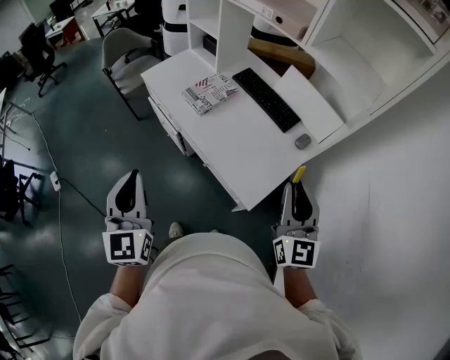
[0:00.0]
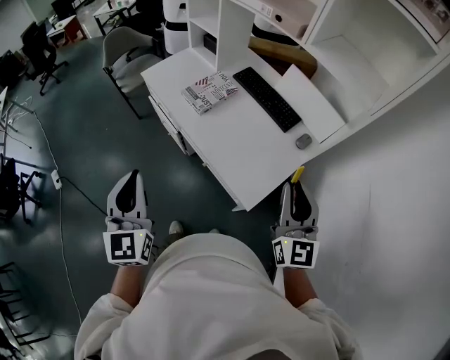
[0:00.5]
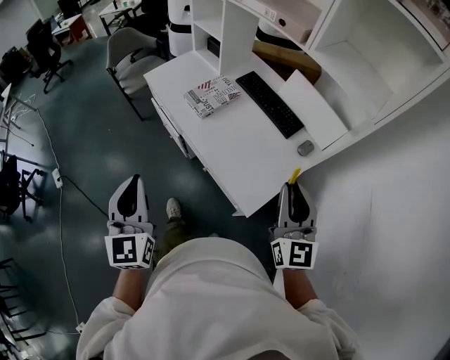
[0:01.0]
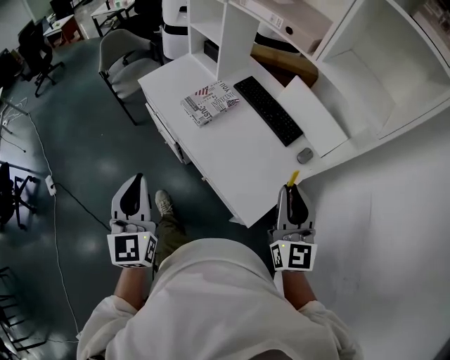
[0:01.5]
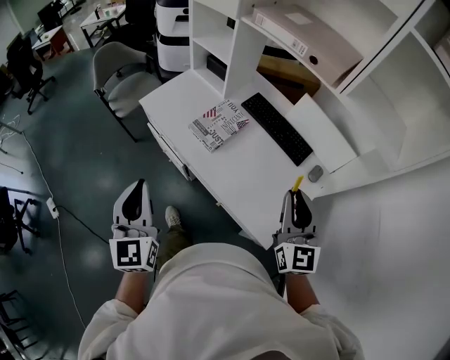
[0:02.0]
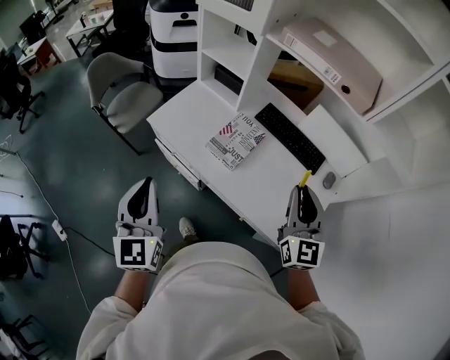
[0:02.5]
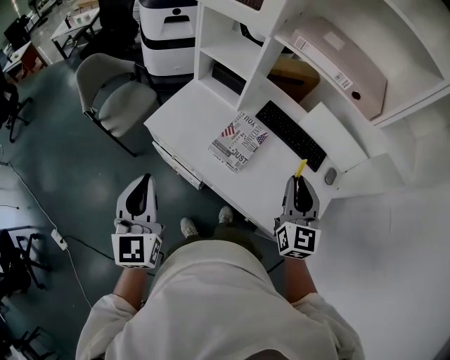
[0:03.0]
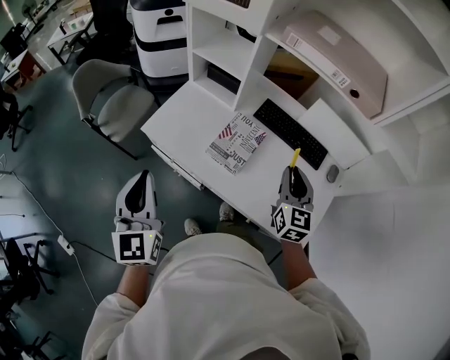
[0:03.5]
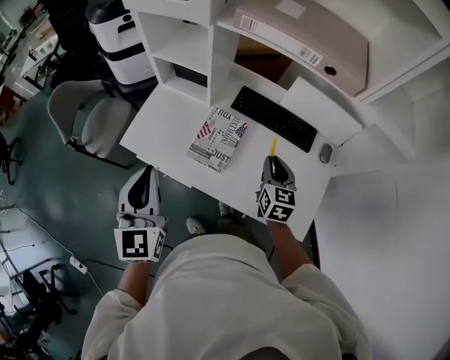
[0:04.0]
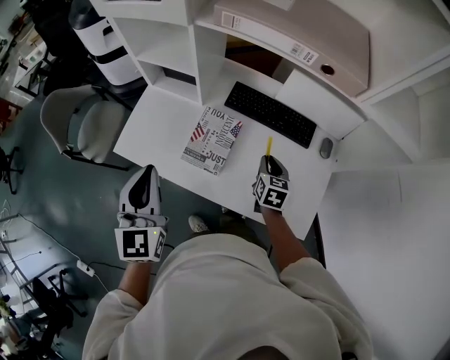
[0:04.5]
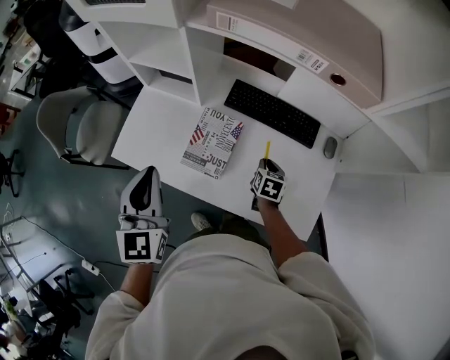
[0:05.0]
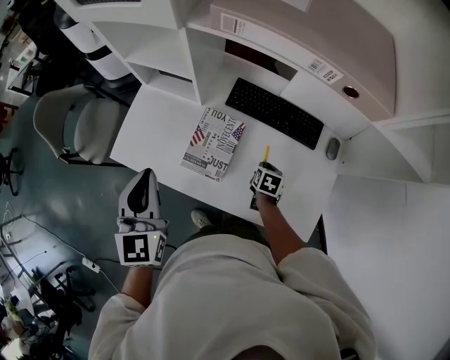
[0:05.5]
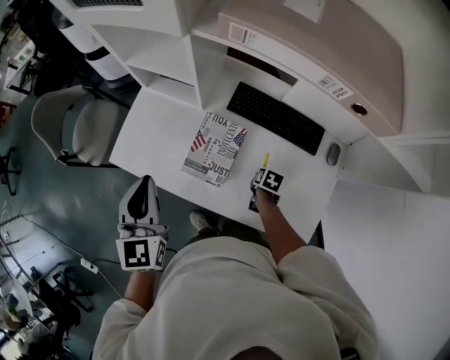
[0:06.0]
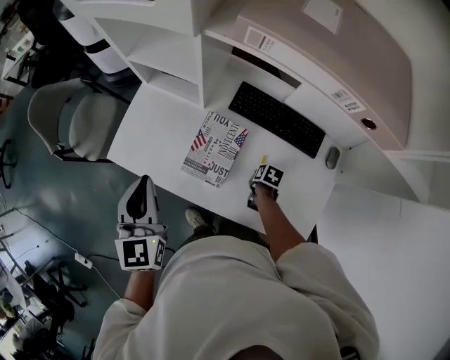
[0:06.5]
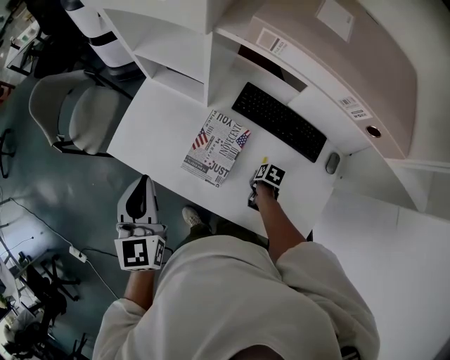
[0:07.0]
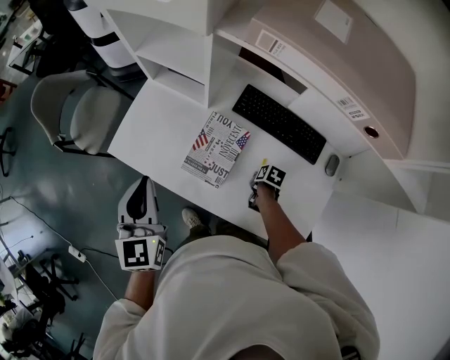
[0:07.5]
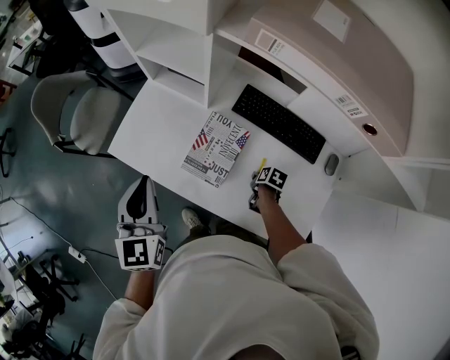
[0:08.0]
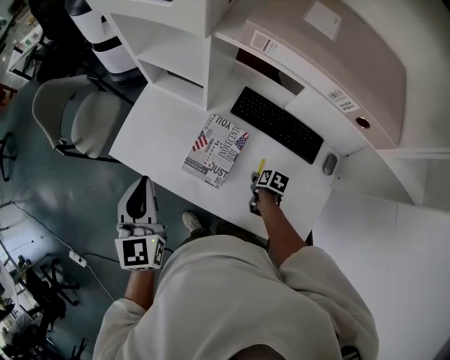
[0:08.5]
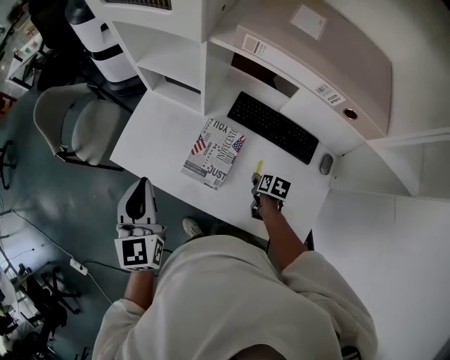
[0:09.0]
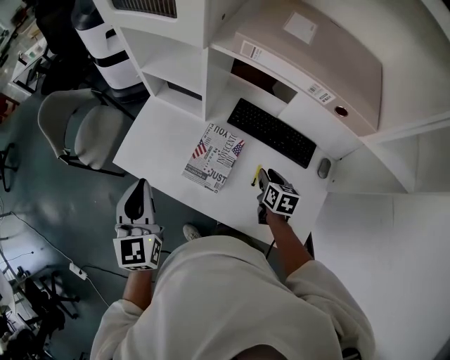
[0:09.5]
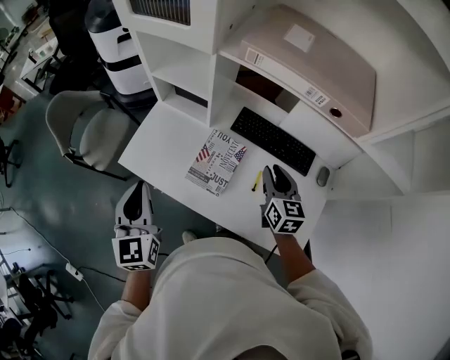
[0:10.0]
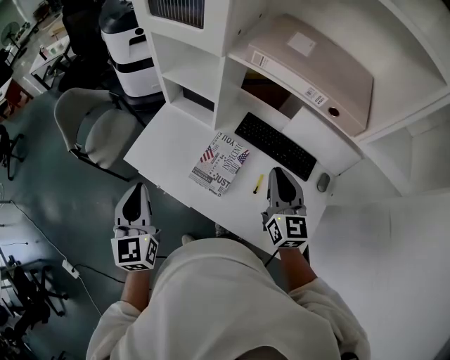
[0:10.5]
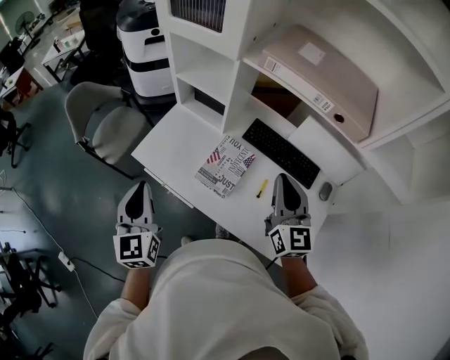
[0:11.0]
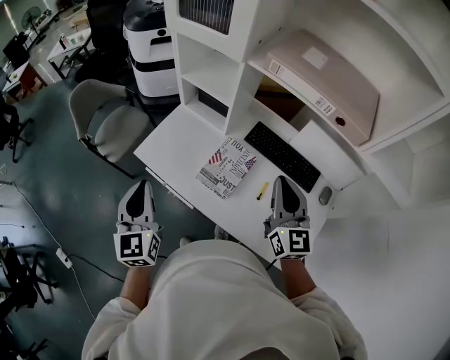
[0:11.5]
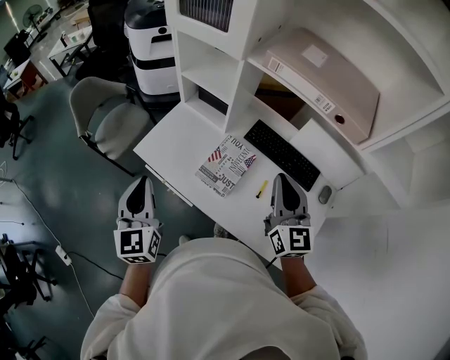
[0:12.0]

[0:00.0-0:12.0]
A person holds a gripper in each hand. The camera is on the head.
0:00.0 to 0:02.0: Both grippers move forward and to the left, approximately 20 cm.
0:02.0 to 0:04.0: The right gripper shifts roughly 30 cm forward, downward and to the left, and turns by approximately 40 degrees; the left gripper shifts roughly 25 cm forward, and swivels approximately 20 degrees.
0:04.0 to 0:06.0: The right gripper is displaced downward by some 25 cm, and points its fingers some 40 degrees further downward. The left gripper is displaced forward and downward by approximately 15 cm.
0:06.0 to 0:08.0: There are only small adjustments of the grippers.
0:08.0 to 0:10.0: The right gripper is displaced upward by some 30 cm, and tips its fingers upward by approximately 50 degrees. Meanwhile the left gripper ends up about 10 cm from where it was.
0:10.0 to 0:12.0: The left gripper moves backward, approximately 5 cm. The right gripper moves upward, backward and to the left, about 15 cm, swivels about 30 degrees, and closes its fingers.

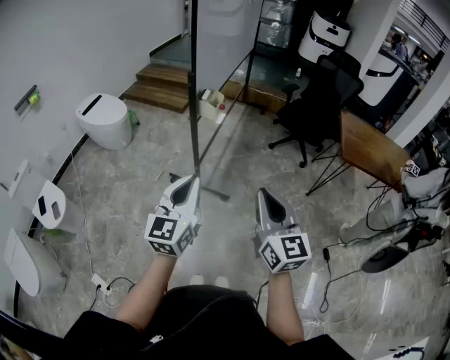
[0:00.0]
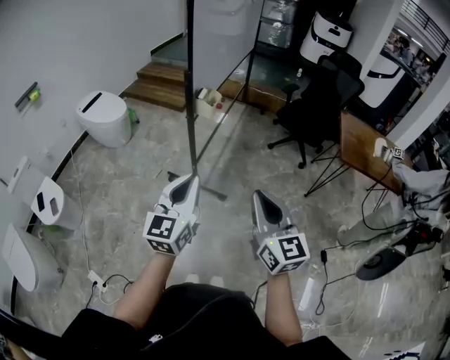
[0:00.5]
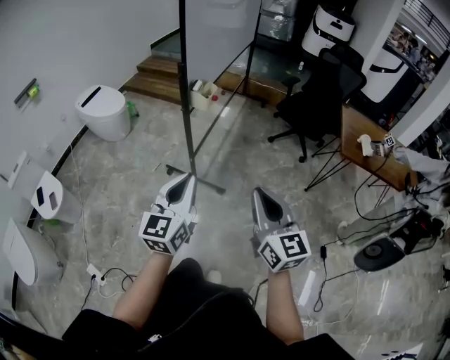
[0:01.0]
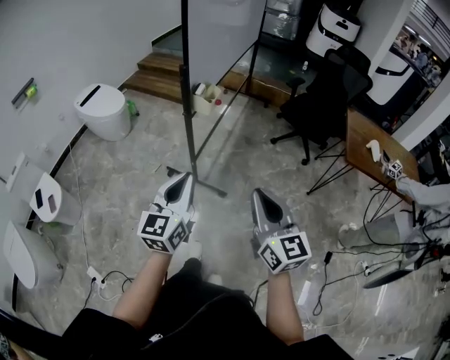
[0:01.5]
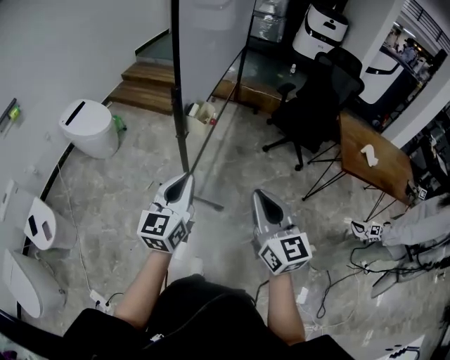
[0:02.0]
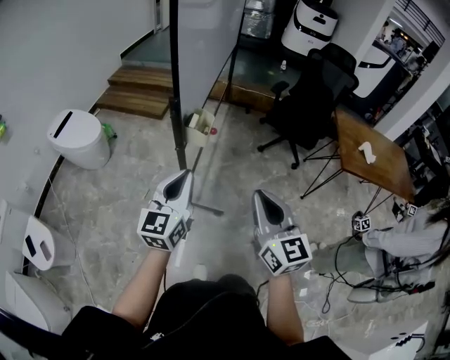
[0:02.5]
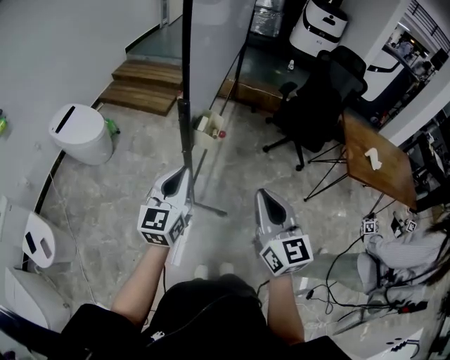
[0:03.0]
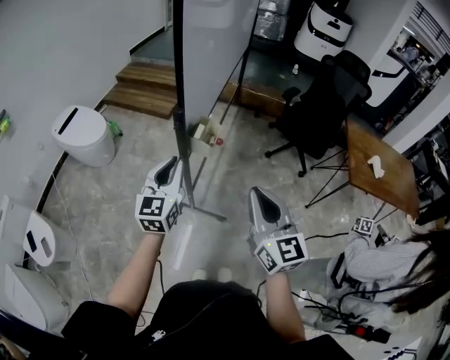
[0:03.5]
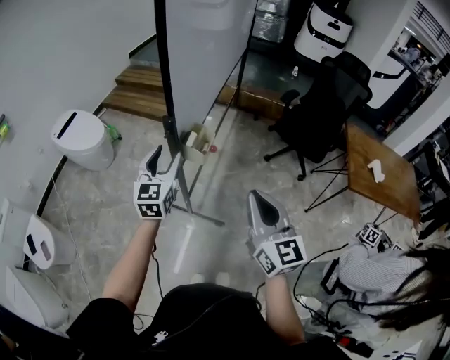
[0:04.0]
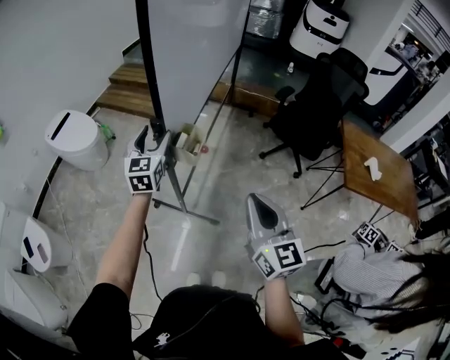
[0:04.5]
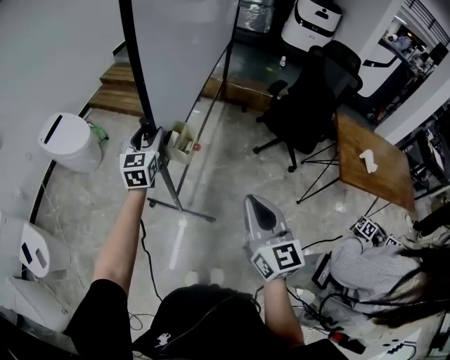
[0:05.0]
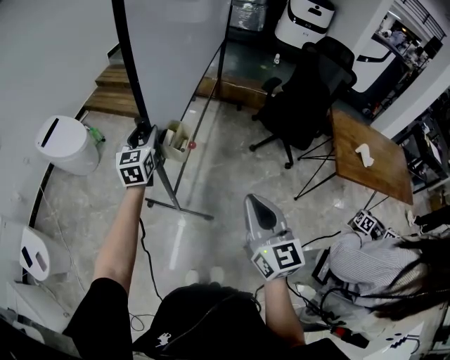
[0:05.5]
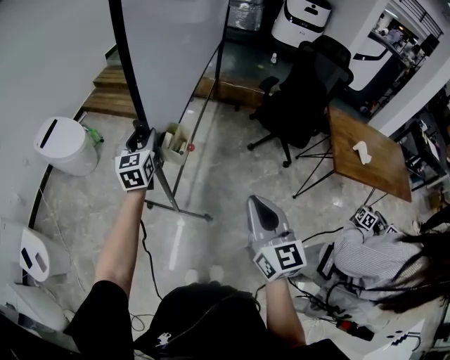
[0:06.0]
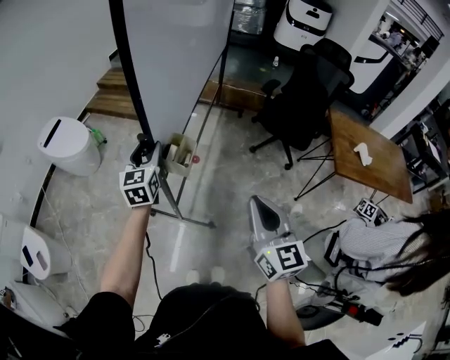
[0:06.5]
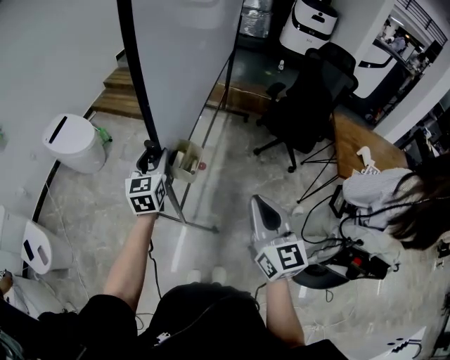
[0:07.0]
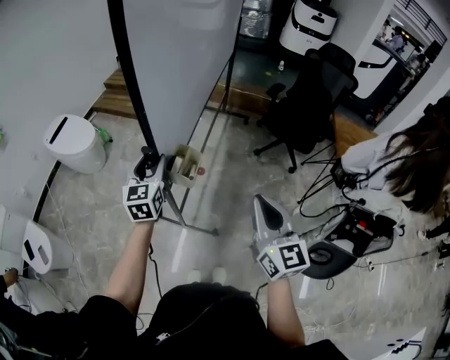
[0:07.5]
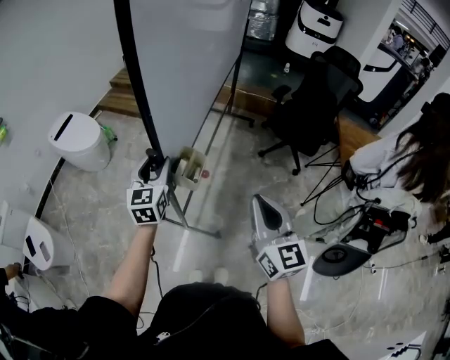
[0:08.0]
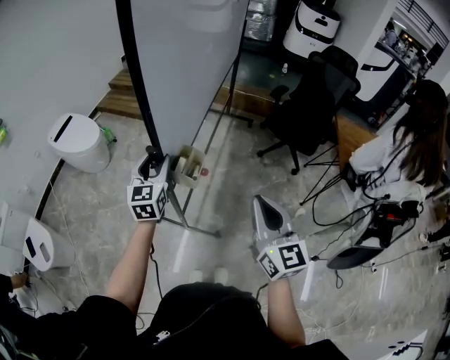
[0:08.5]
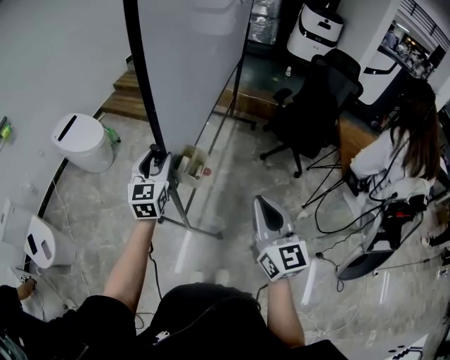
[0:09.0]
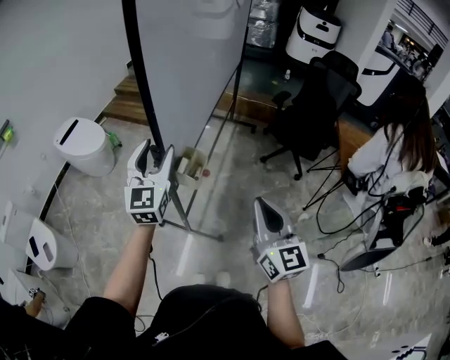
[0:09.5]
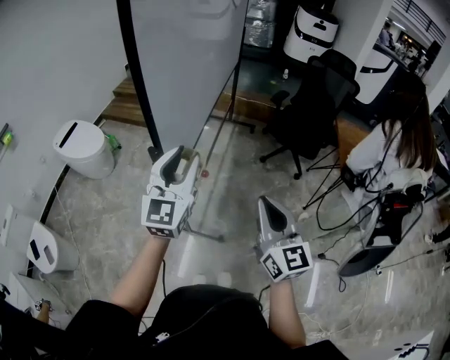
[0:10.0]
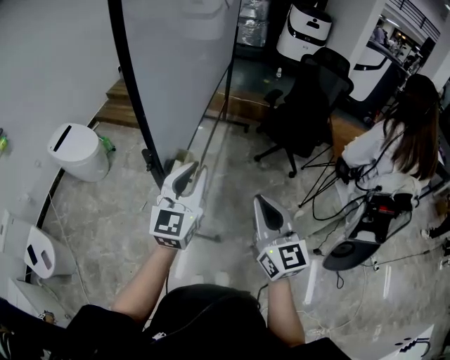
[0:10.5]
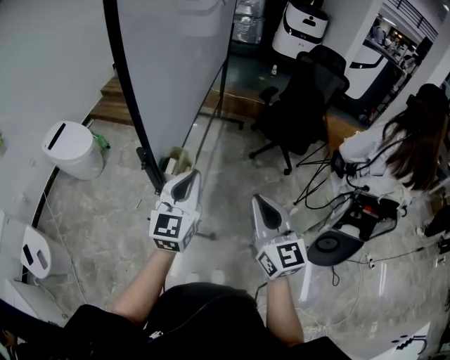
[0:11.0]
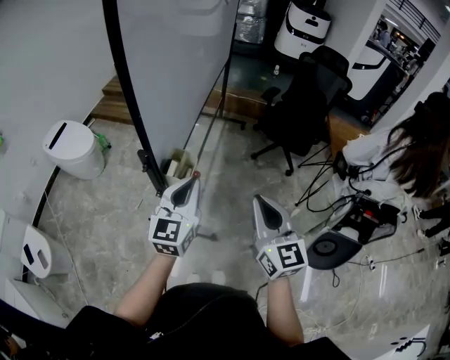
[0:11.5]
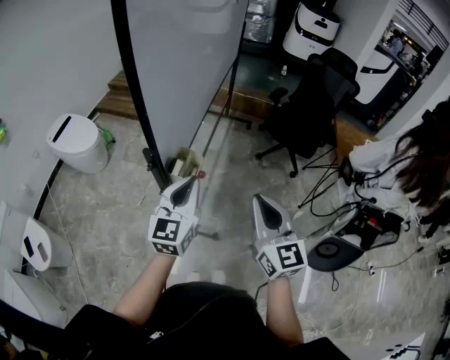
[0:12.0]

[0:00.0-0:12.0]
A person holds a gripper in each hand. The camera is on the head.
0:00.0 to 0:02.0: Both grippers move forward, roughly 15 cm.
0:02.0 to 0:04.0: The left gripper heads forward, covering roughly 25 cm, and opens its fingers, while the right gripper travels forward by roughly 15 cm.
0:04.0 to 0:06.0: The right gripper moves approximately 5 cm; the left gripper travels forward by roughly 10 cm.
0:06.0 to 0:08.0: The left gripper heads backward, covering about 15 cm.
0:08.0 to 0:10.0: The left gripper goes approximately 20 cm upward, to the right and backward, and rotates about 20 degrees.
0:10.0 to 0:12.0: The left gripper travels downward by about 10 cm, and closes up.

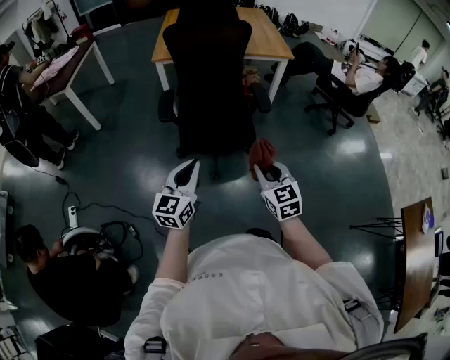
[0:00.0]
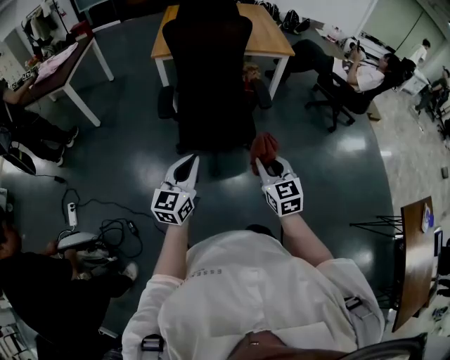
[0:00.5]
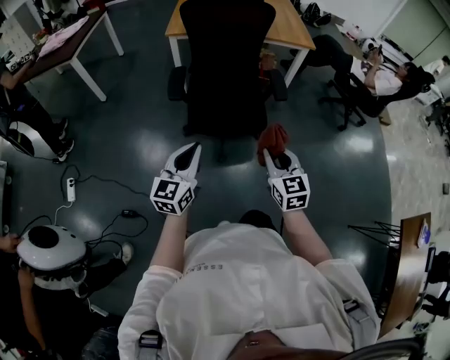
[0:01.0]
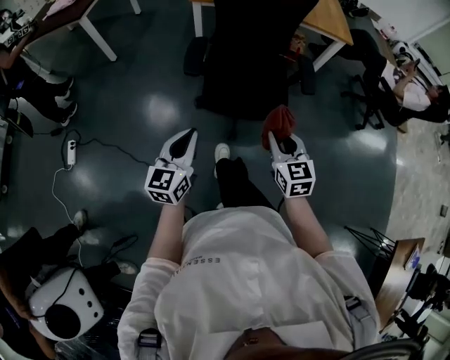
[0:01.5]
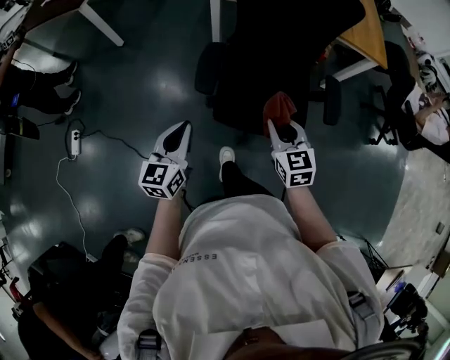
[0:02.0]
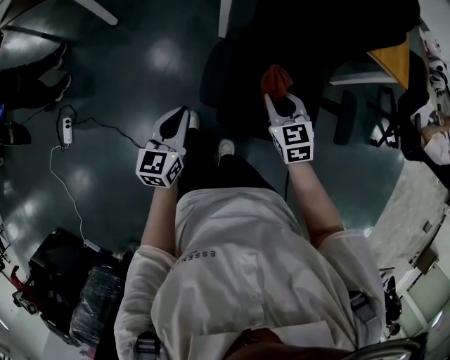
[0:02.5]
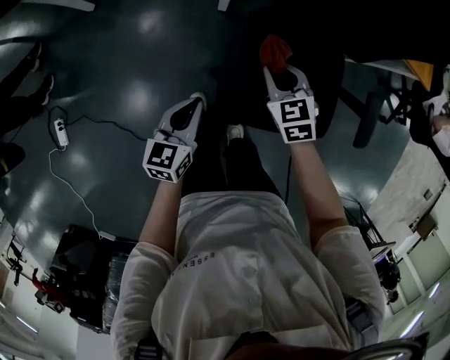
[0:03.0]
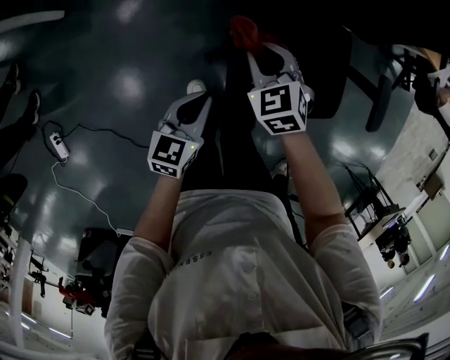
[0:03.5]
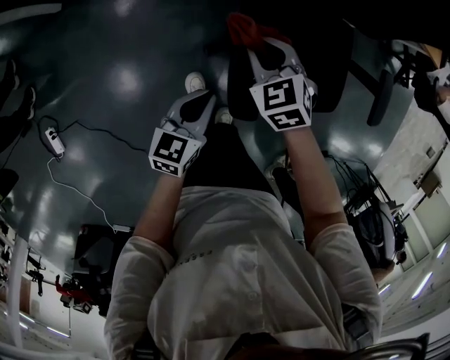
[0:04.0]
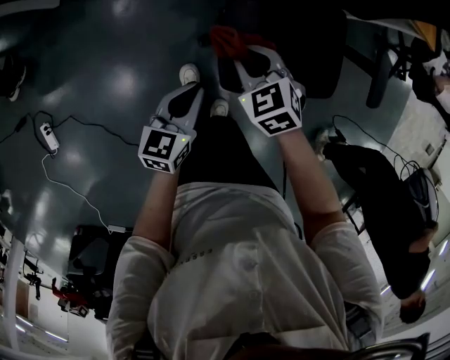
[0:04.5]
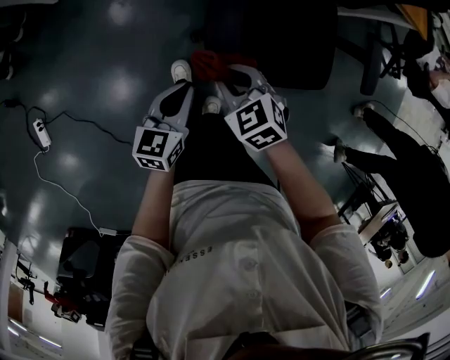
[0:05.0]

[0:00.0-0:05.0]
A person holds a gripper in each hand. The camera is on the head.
0:00.0 to 0:02.5: The left gripper heads forward, to the left and downward, covering about 40 cm, and turns by roughly 30 degrees; the right gripper is displaced forward and to the left by roughly 50 cm, and changes its angle by some 20 degrees.
0:02.5 to 0:05.0: The left gripper shifts about 15 cm downward, and rotates some 20 degrees. Meanwhile the right gripper is displaced to the left, downward and backward by approximately 20 cm.
